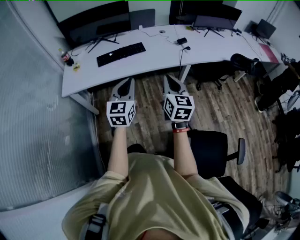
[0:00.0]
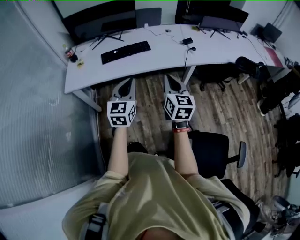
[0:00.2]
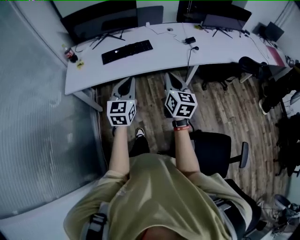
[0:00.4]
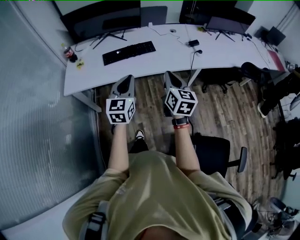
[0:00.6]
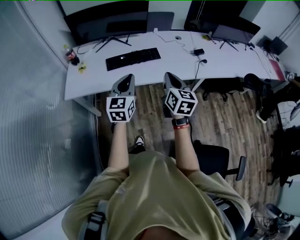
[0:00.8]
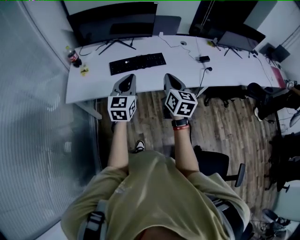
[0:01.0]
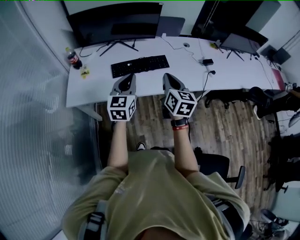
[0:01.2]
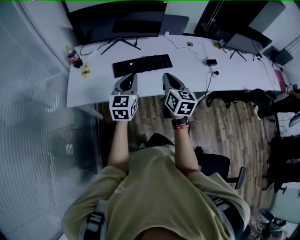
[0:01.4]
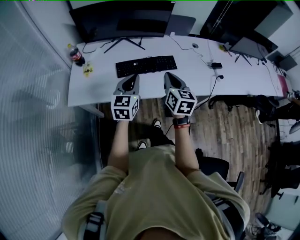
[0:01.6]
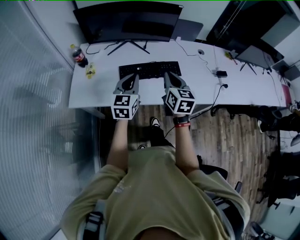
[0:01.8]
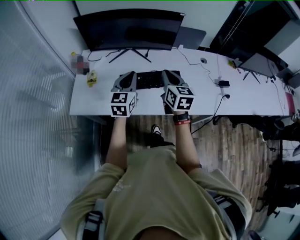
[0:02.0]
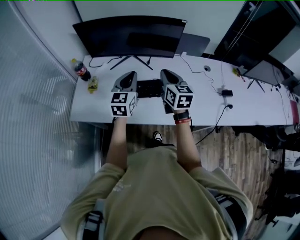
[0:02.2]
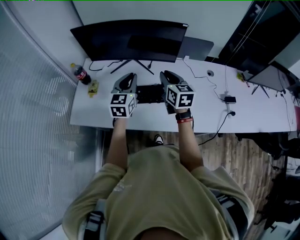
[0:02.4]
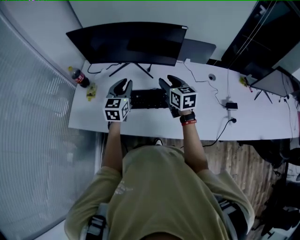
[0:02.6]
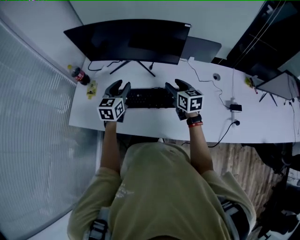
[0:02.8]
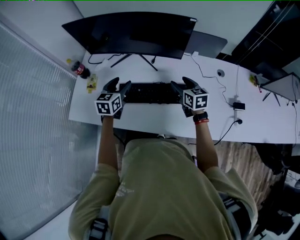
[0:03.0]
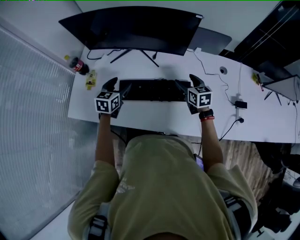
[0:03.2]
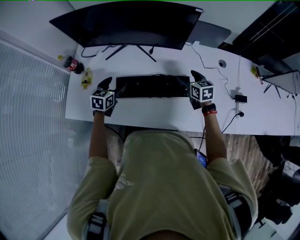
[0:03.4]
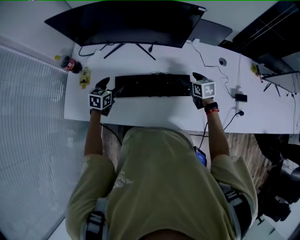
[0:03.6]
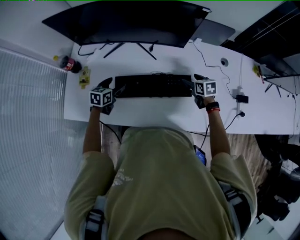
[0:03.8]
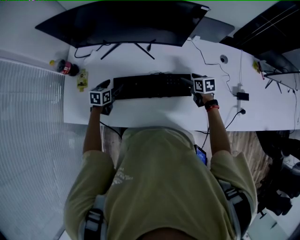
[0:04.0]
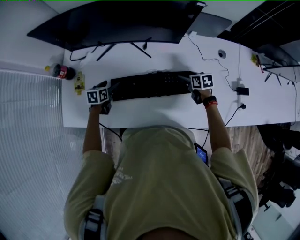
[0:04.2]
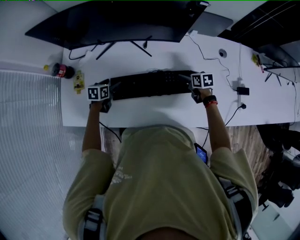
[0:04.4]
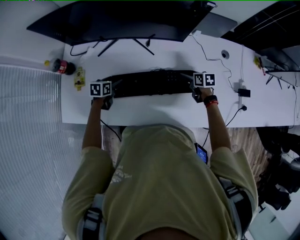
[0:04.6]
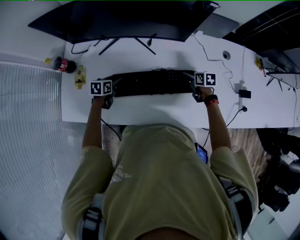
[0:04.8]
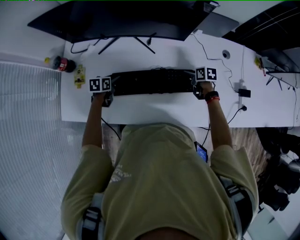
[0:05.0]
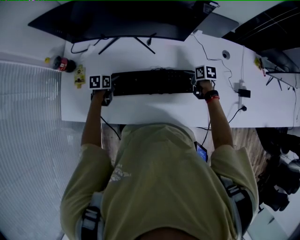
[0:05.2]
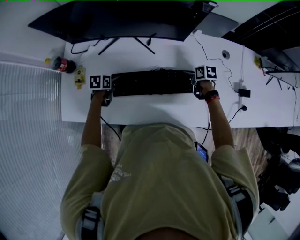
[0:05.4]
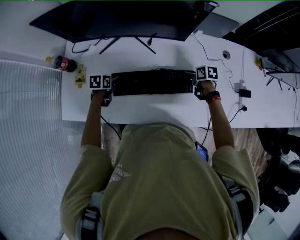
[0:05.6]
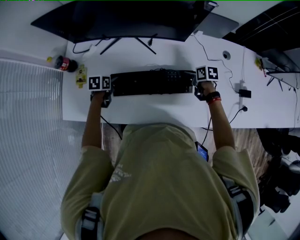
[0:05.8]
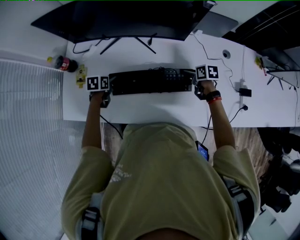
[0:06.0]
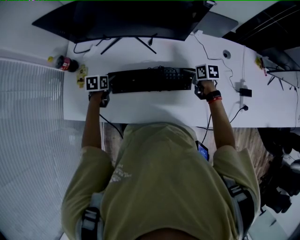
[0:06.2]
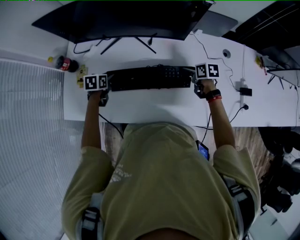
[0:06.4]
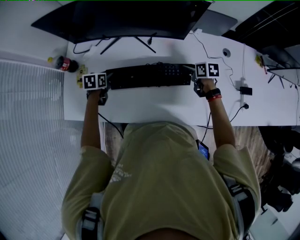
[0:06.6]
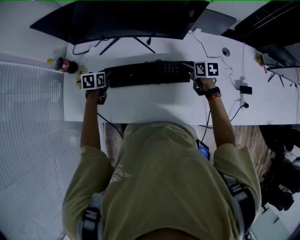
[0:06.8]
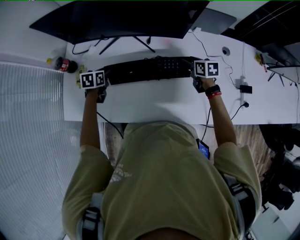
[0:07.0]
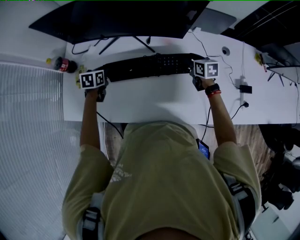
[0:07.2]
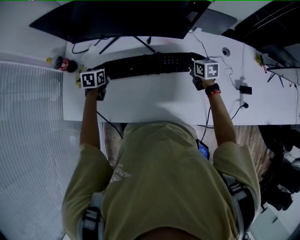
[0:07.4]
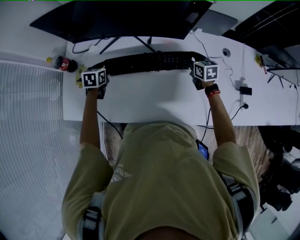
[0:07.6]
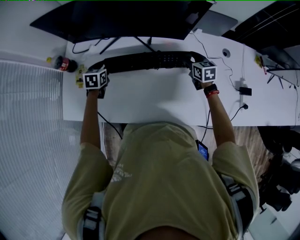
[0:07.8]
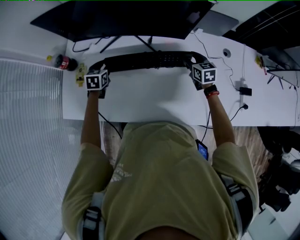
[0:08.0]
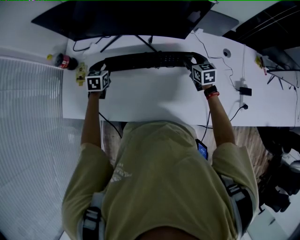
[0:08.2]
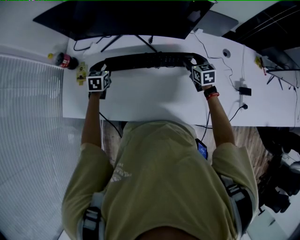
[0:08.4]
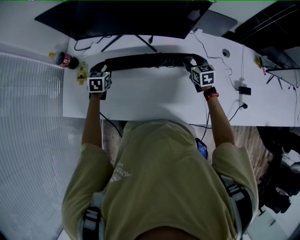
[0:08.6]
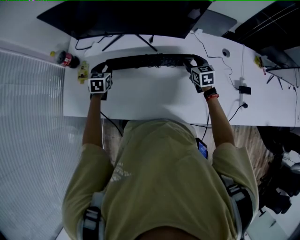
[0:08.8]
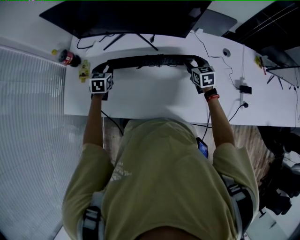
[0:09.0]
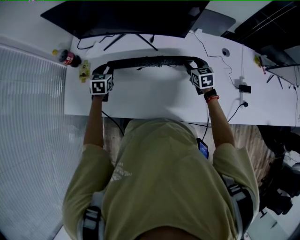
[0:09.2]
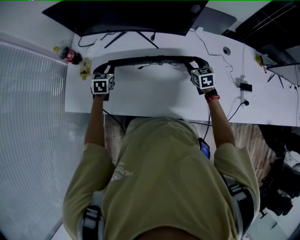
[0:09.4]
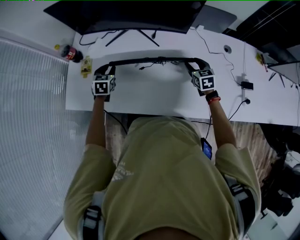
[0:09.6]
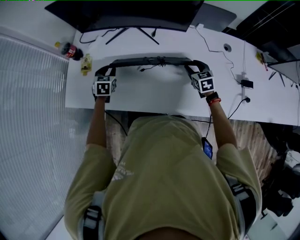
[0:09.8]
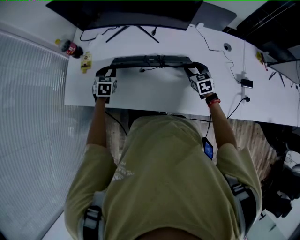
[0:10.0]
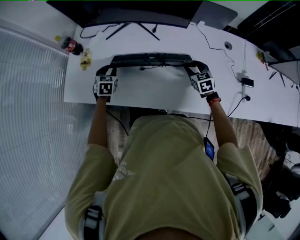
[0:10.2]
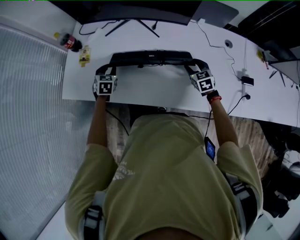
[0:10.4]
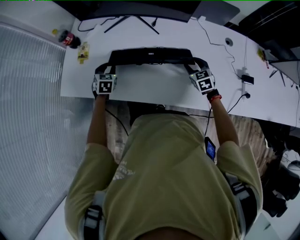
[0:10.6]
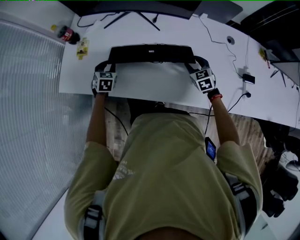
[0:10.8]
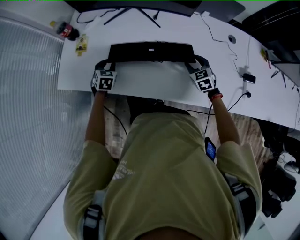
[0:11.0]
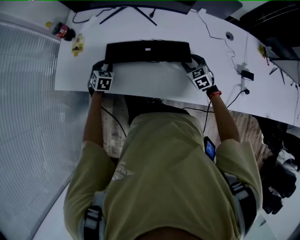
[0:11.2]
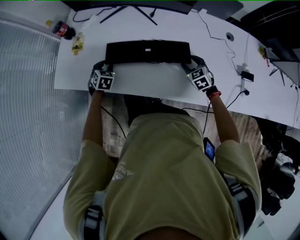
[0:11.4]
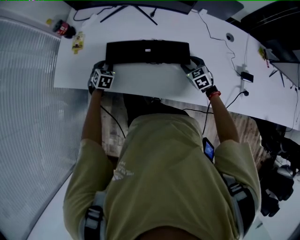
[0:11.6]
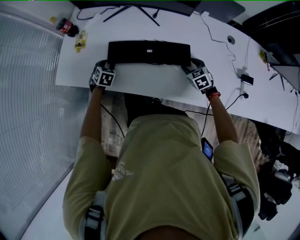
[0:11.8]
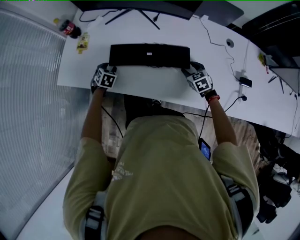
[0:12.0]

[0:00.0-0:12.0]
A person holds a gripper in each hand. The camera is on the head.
0:00.0 to 0:01.6: Both grippers travel together forward and to the left, approximately 40 cm.
0:01.6 to 0:03.0: The right gripper shifts some 35 cm forward and downward, swivels about 30 degrees, and opens up. Meanwhile the left gripper travels forward by some 25 cm, and opens.
0:03.0 to 0:04.4: The grippers both shift downward by some 20 cm. The right gripper changes its angle by some 30 degrees. The left gripper changes its angle by approximately 30 degrees.
0:04.4 to 0:06.0: The left gripper closes up. Meanwhile the right gripper closes up.
0:06.0 to 0:07.6: The left gripper shifts approximately 5 cm forward. The right gripper moves forward and upward, approximately 10 cm, and swivels some 30 degrees.
0:07.6 to 0:09.0: The grippers make only small movements.
0:09.0 to 0:10.4: The grippers both shift backward by about 10 cm.
0:10.4 to 0:12.0: The right gripper ends up about 5 cm from where it was. Meanwhile the left gripper travels downward and backward by about 10 cm.

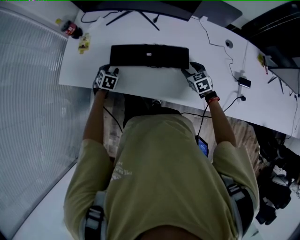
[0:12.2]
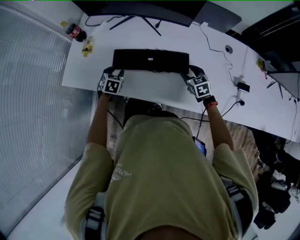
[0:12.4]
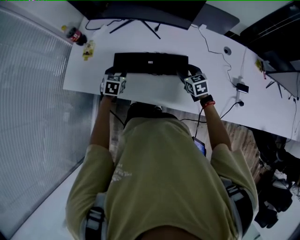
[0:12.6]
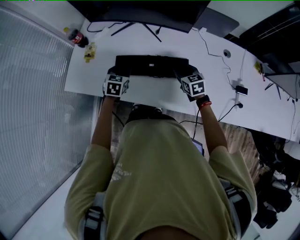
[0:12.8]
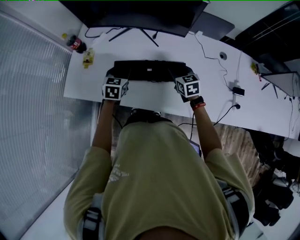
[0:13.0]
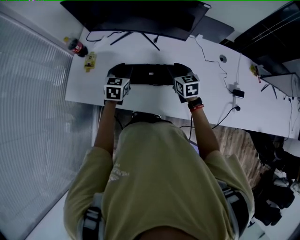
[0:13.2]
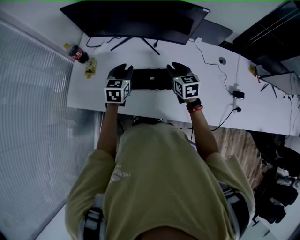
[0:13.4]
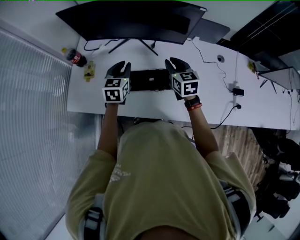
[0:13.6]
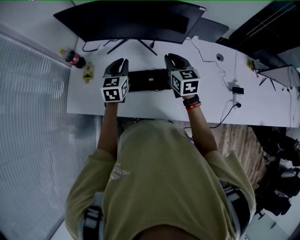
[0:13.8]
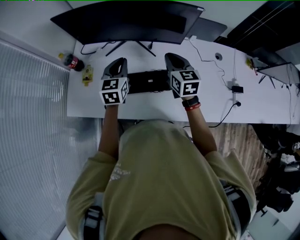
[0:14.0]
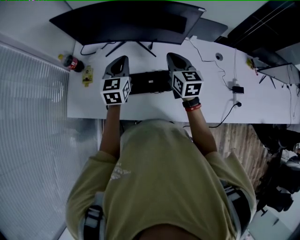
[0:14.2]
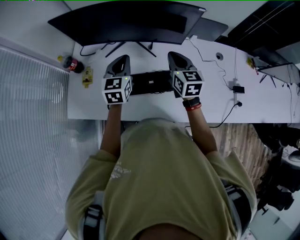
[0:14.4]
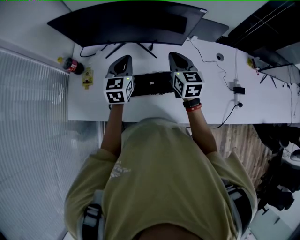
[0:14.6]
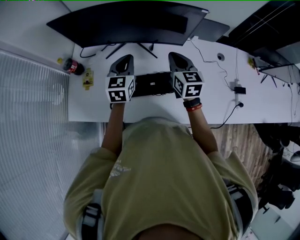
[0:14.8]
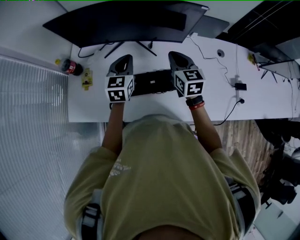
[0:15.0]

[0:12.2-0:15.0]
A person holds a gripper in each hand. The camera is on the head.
0:12.2 to 0:13.6: The right gripper heads upward, to the left and forward, covering approximately 25 cm, changes its angle by some 30 degrees, and closes its fingers; the left gripper goes about 25 cm upward and forward, and tips its fingers upward by roughly 30 degrees.
0:13.6 to 0:15.0: The right gripper changes place by roughly 5 cm, while the left gripper is displaced forward by some 5 cm.

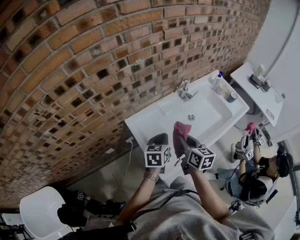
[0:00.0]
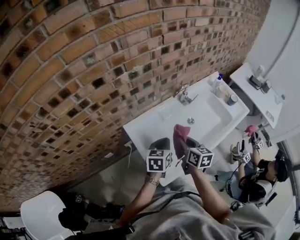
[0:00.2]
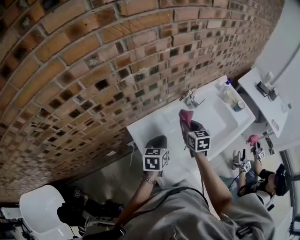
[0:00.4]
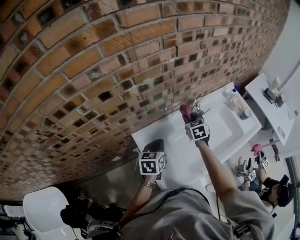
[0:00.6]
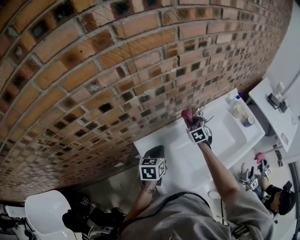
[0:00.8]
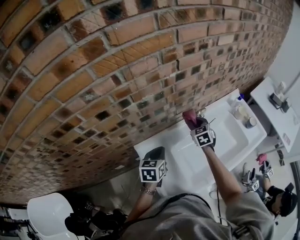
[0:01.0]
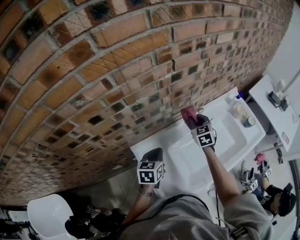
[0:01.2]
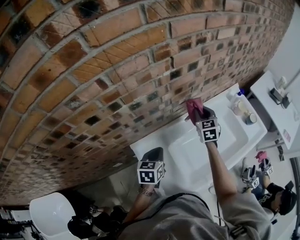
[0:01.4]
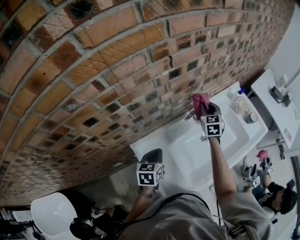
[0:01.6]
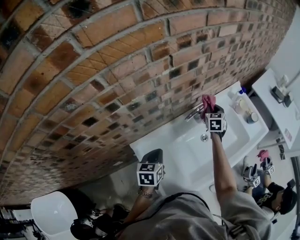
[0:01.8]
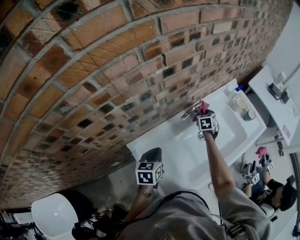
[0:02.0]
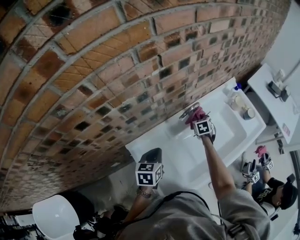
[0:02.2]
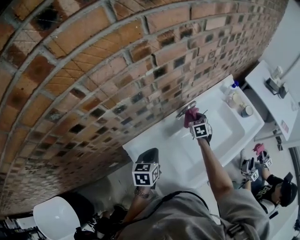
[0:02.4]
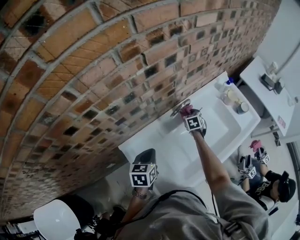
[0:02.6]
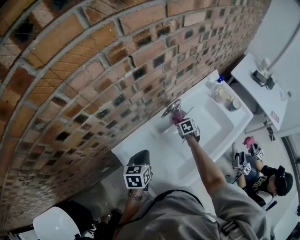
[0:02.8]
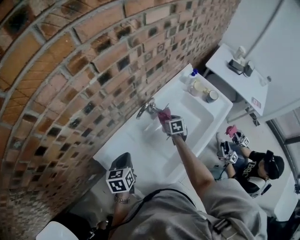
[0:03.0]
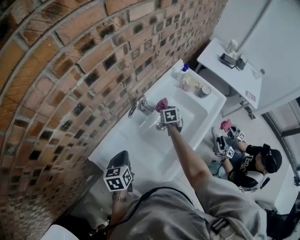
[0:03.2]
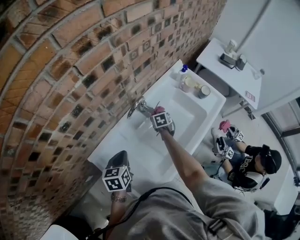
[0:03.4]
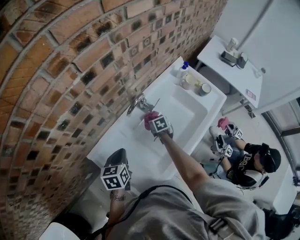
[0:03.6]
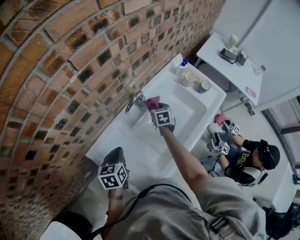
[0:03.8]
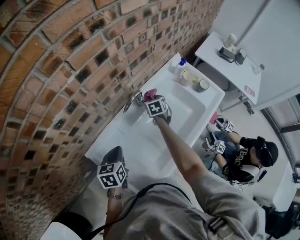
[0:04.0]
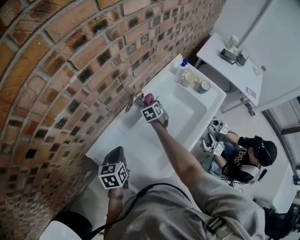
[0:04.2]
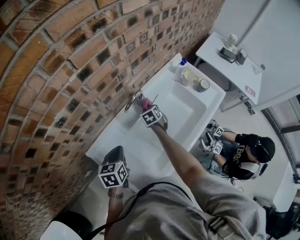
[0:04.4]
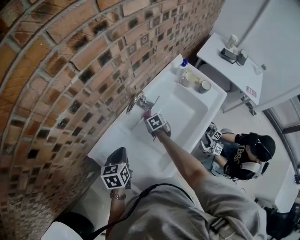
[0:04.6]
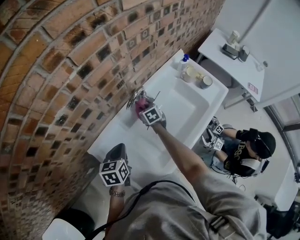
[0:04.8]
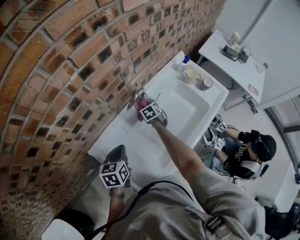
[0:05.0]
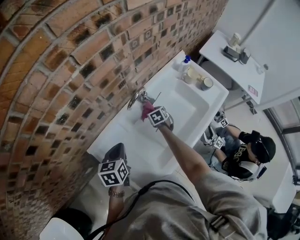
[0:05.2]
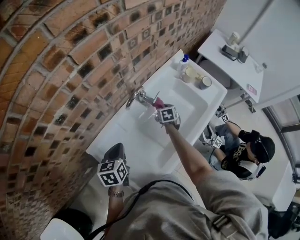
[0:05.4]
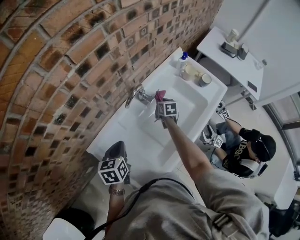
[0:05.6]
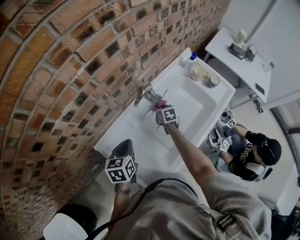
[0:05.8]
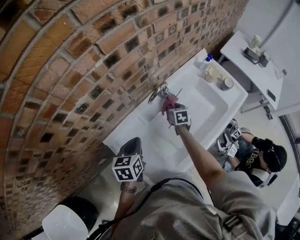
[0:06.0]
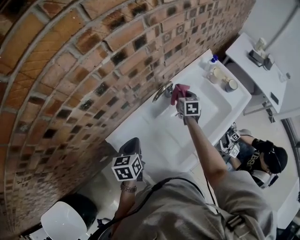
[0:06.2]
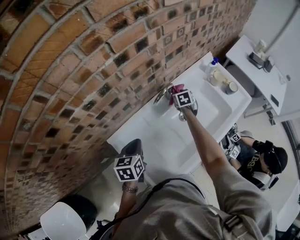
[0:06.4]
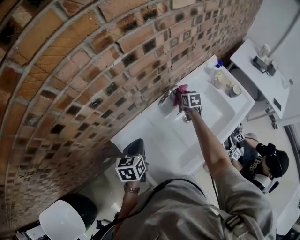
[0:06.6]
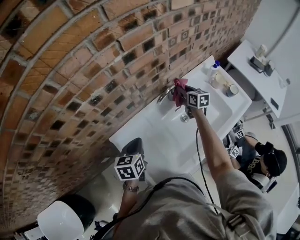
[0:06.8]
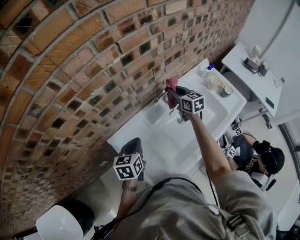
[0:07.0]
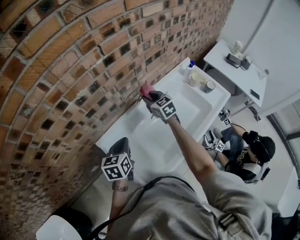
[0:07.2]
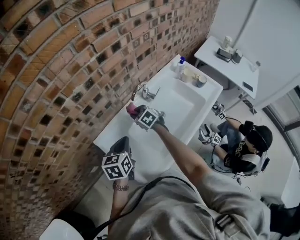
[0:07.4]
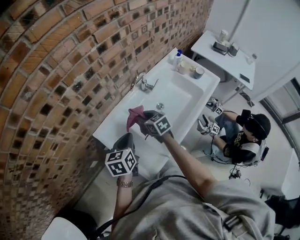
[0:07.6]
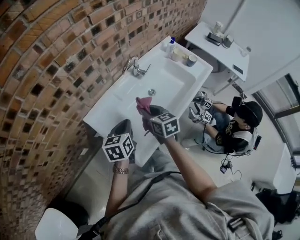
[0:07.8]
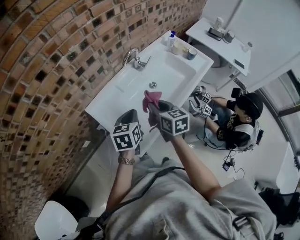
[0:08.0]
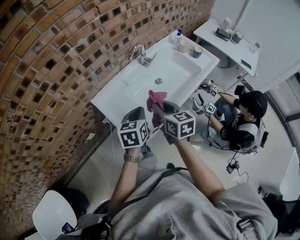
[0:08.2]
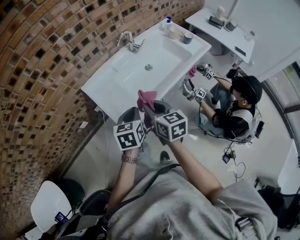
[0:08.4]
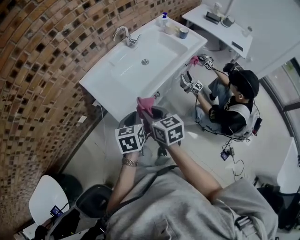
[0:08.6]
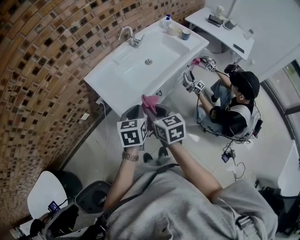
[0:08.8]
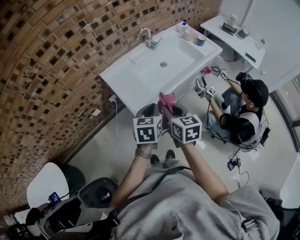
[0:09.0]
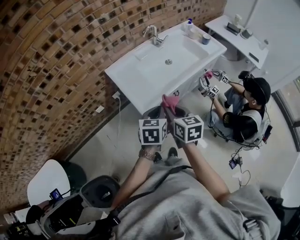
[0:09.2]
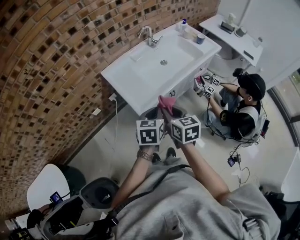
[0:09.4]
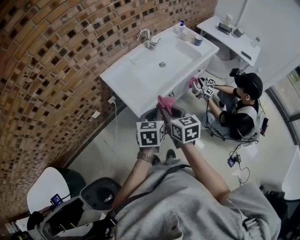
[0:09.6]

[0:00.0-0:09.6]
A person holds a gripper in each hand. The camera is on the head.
0:00.0 to 0:01.6: The right gripper goes some 40 cm forward, and changes its angle by some 40 degrees. Meanwhile the left gripper moves forward, some 15 cm.
0:01.6 to 0:03.2: The right gripper travels downward and to the right by some 25 cm, and rotates some 40 degrees. Meanwhile the left gripper goes about 5 cm to the right.
0:03.2 to 0:04.8: The right gripper goes roughly 15 cm to the left, and turns by about 20 degrees.
0:04.8 to 0:06.4: The right gripper swings left and right, roughly 15 cm each way, with 2 reversals.
0:06.4 to 0:08.0: The right gripper shifts approximately 40 cm backward and upward, and swivels roughly 30 degrees. Meanwhile the left gripper moves backward and to the right, approximately 20 cm.
0:08.0 to 0:09.6: Both grippers travel together backward, approximately 25 cm.
